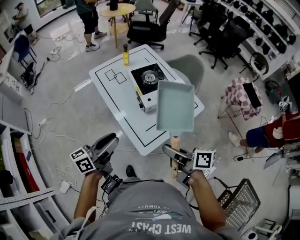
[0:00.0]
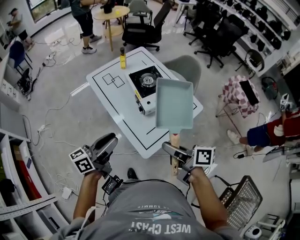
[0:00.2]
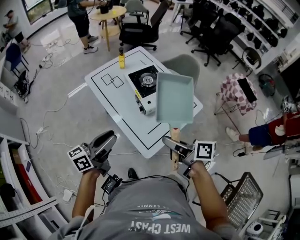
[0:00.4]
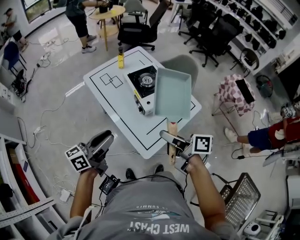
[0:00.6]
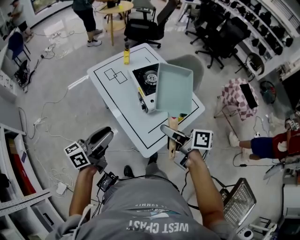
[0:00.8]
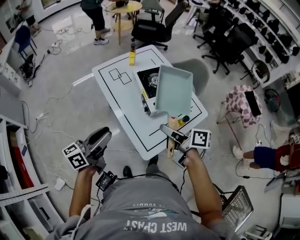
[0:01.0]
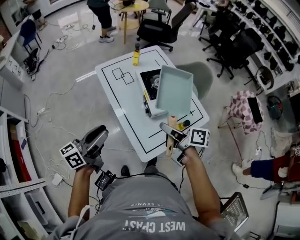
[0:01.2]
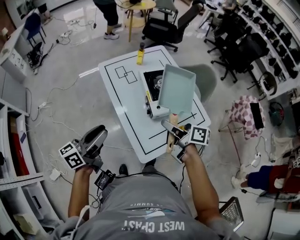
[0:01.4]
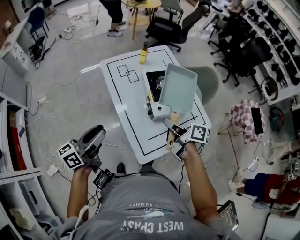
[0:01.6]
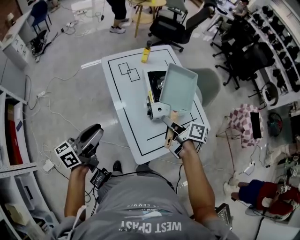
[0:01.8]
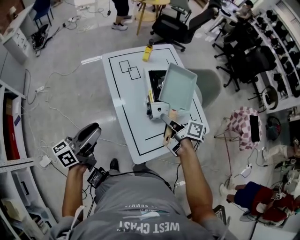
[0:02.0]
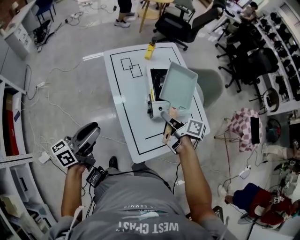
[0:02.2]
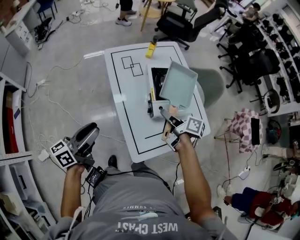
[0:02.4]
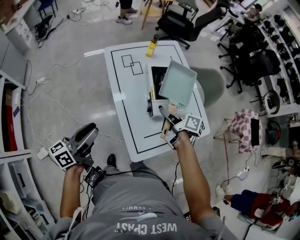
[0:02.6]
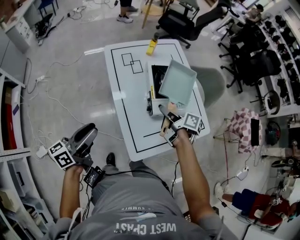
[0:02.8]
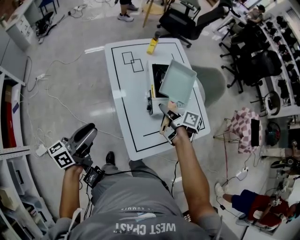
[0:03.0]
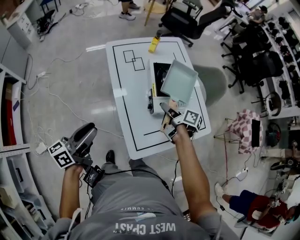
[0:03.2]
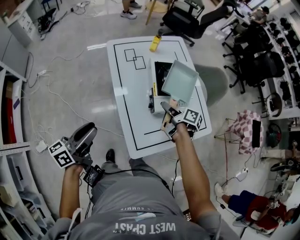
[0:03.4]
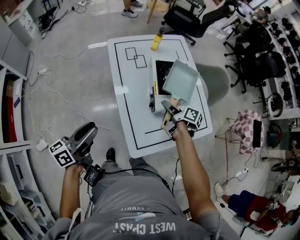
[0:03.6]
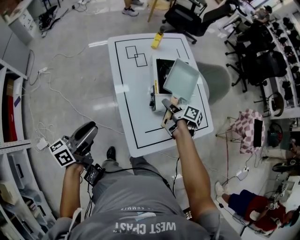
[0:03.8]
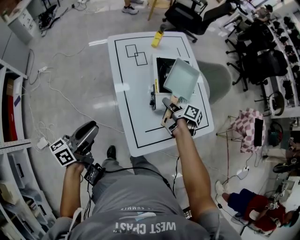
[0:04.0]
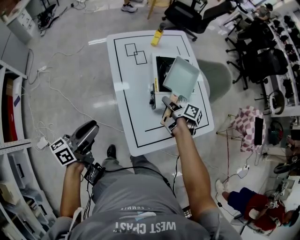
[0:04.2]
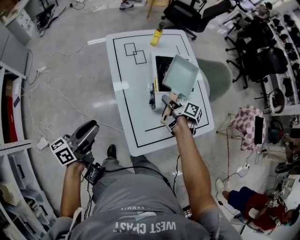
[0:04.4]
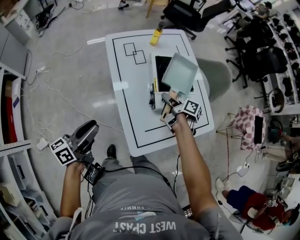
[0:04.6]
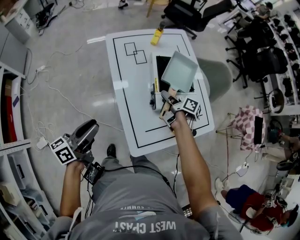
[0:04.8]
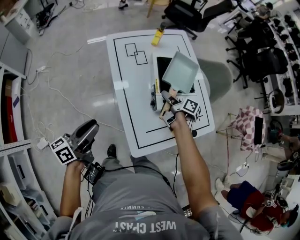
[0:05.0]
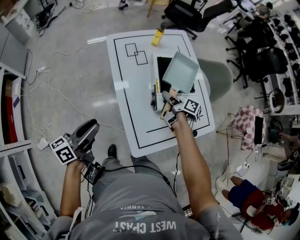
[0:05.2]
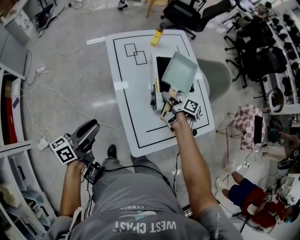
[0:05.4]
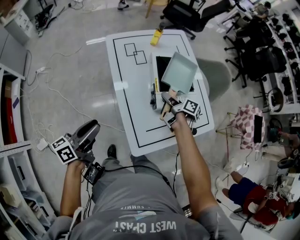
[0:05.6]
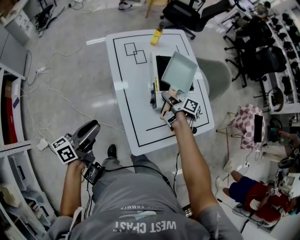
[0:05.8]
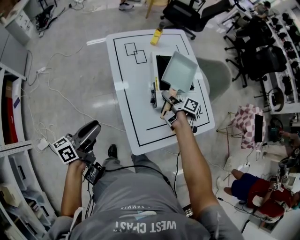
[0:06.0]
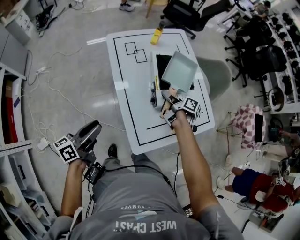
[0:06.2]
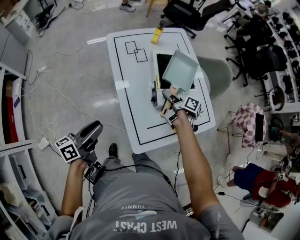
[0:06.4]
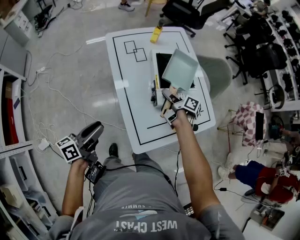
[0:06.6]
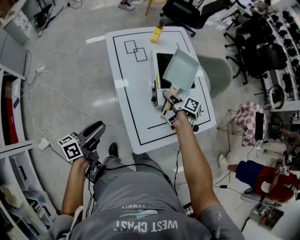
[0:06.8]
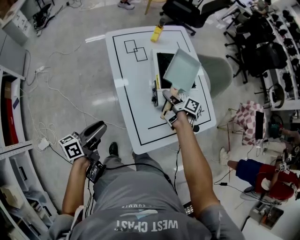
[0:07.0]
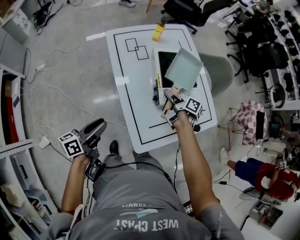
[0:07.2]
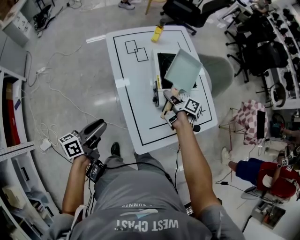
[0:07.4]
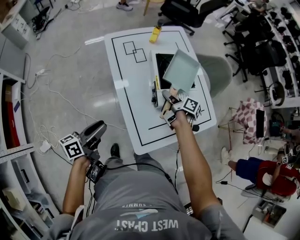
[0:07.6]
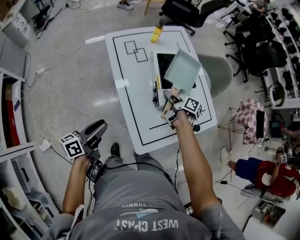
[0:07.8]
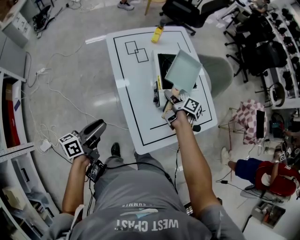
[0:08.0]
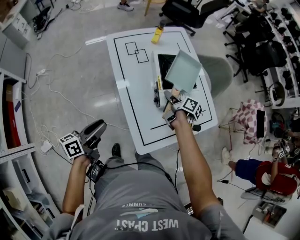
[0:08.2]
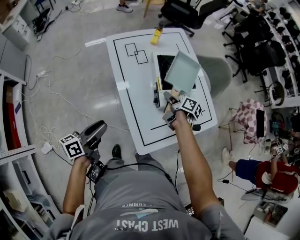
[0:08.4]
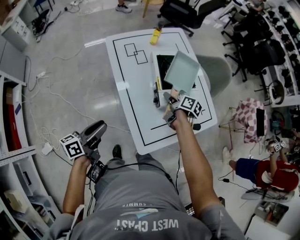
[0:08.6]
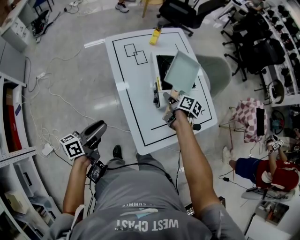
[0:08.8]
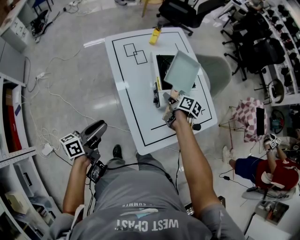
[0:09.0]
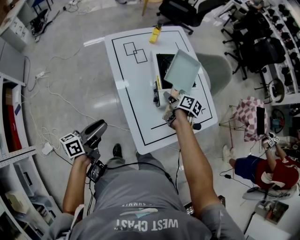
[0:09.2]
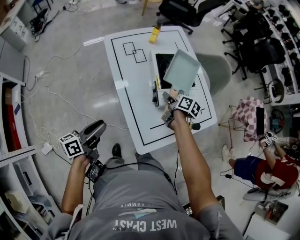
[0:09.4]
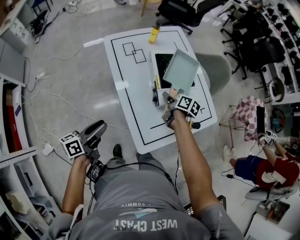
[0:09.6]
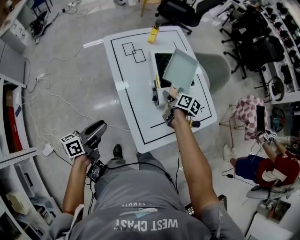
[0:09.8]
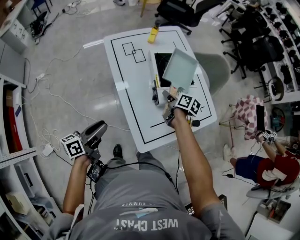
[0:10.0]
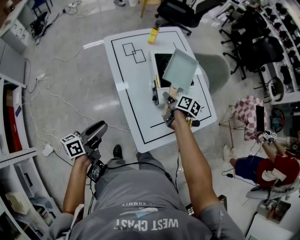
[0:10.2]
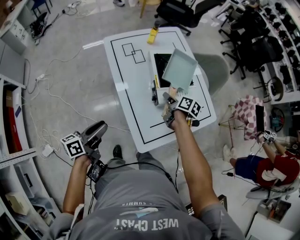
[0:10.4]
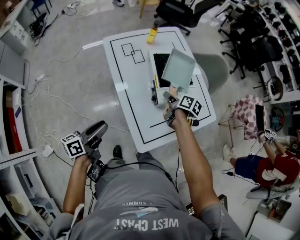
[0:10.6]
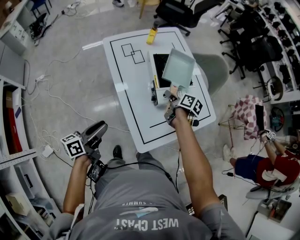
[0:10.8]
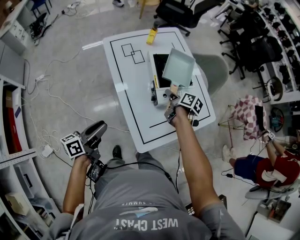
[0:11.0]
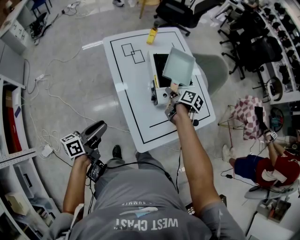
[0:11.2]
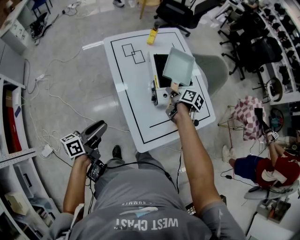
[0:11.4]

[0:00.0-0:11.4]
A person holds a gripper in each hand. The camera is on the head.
0:00.0 to 0:01.4: The left gripper goes approximately 10 cm to the left and forward, while the right gripper is displaced forward by approximately 20 cm.
0:01.4 to 0:02.8: The right gripper moves forward and downward, approximately 15 cm; the left gripper goes roughly 5 cm downward.
0:02.8 to 0:04.2: The right gripper travels downward by some 5 cm.
0:04.2 to 0:10.0: The grippers stay close to where they were, moving slightly.
0:10.0 to 0:11.4: There are only small adjustments of the grippers.

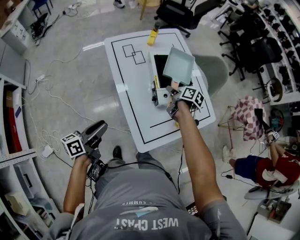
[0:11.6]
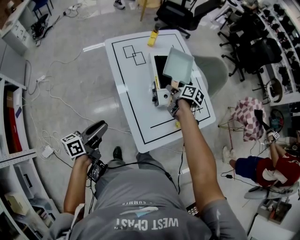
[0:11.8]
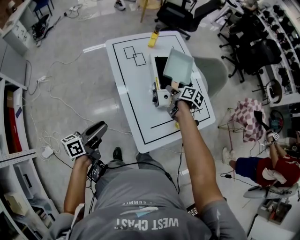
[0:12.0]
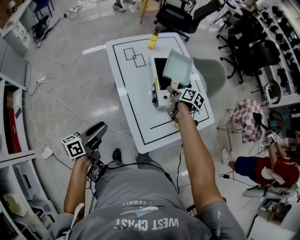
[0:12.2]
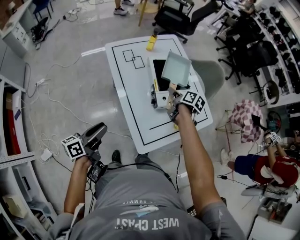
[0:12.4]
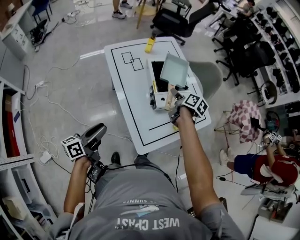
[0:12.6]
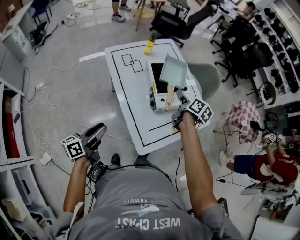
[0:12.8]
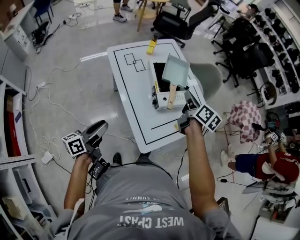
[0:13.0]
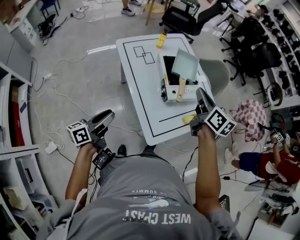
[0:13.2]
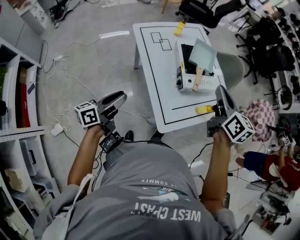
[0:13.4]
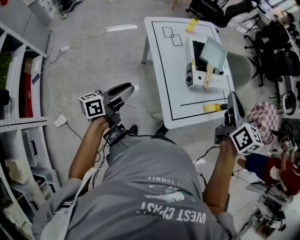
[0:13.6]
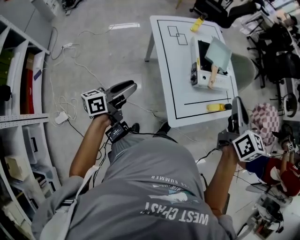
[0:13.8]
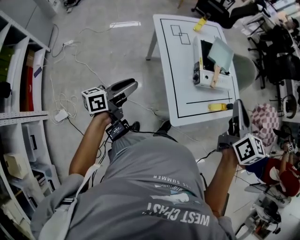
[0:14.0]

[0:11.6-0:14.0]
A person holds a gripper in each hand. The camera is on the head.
0:11.6 to 0:12.8: The right gripper is displaced upward by about 10 cm, and swivels about 20 degrees.
0:12.8 to 0:14.0: The left gripper heads to the left, covering some 5 cm. Meanwhile the right gripper travels backward and upward by approximately 25 cm, changes its angle by roughly 40 degrees, and closes up.

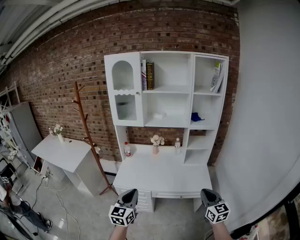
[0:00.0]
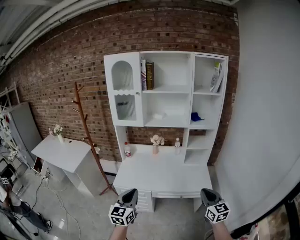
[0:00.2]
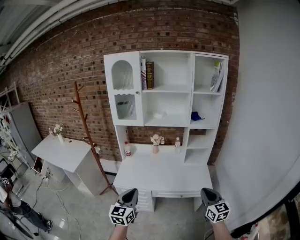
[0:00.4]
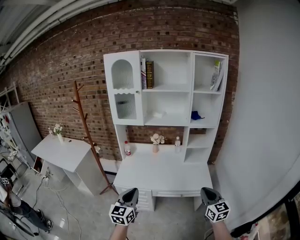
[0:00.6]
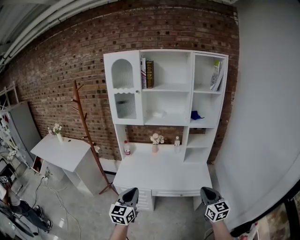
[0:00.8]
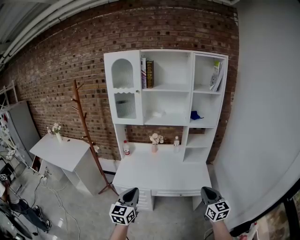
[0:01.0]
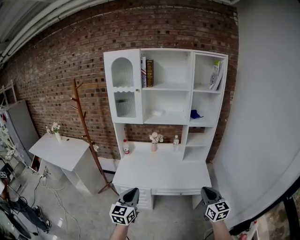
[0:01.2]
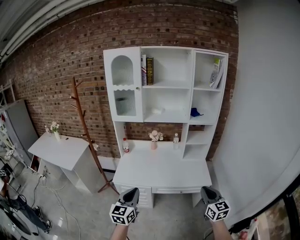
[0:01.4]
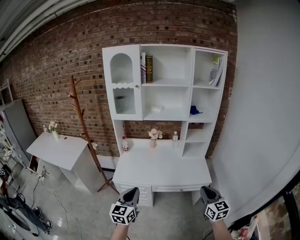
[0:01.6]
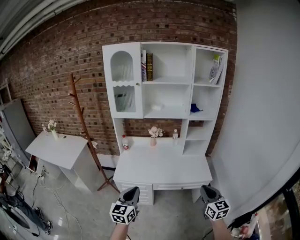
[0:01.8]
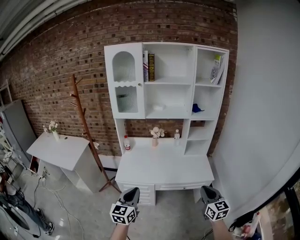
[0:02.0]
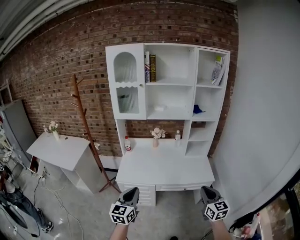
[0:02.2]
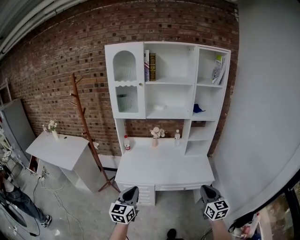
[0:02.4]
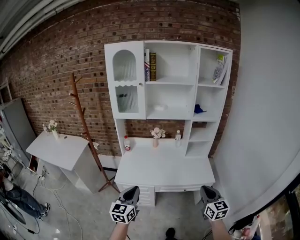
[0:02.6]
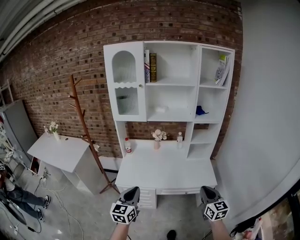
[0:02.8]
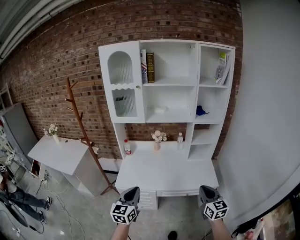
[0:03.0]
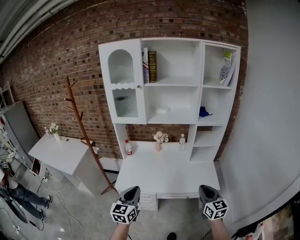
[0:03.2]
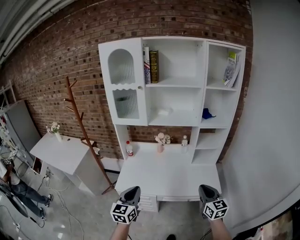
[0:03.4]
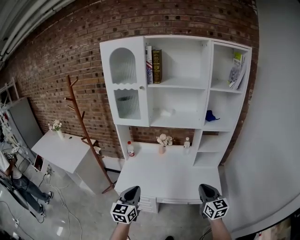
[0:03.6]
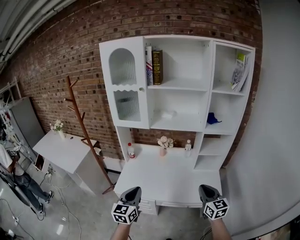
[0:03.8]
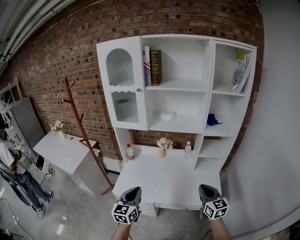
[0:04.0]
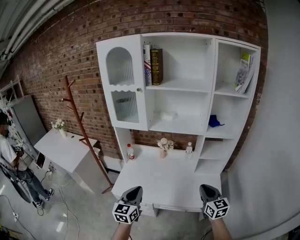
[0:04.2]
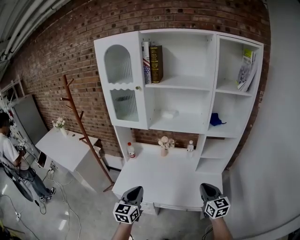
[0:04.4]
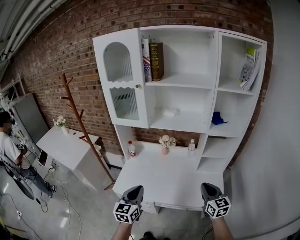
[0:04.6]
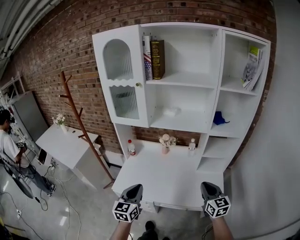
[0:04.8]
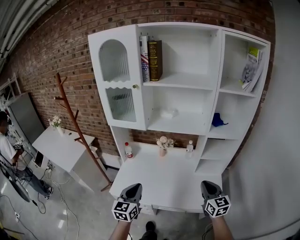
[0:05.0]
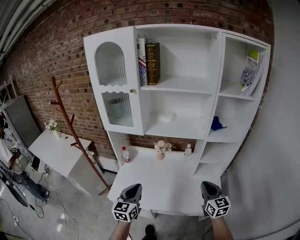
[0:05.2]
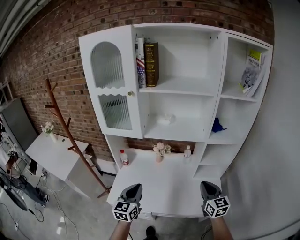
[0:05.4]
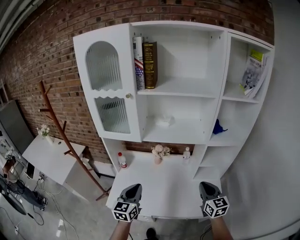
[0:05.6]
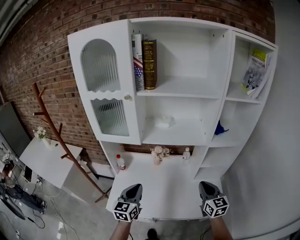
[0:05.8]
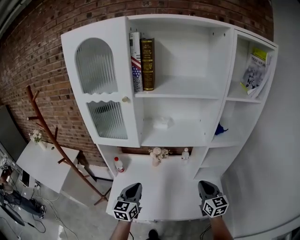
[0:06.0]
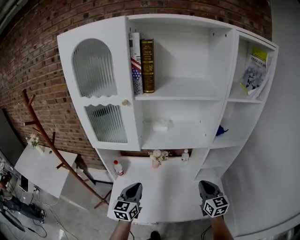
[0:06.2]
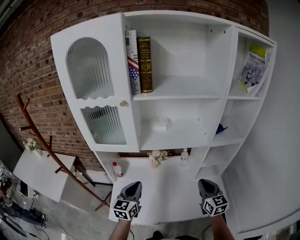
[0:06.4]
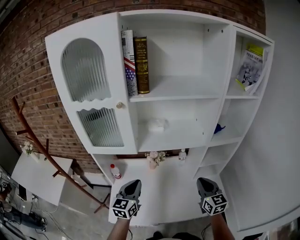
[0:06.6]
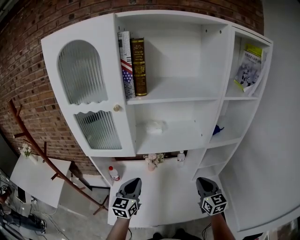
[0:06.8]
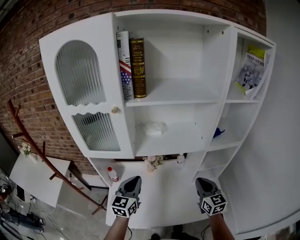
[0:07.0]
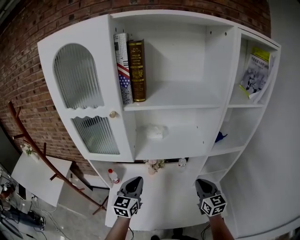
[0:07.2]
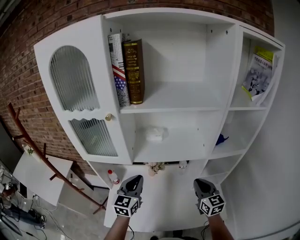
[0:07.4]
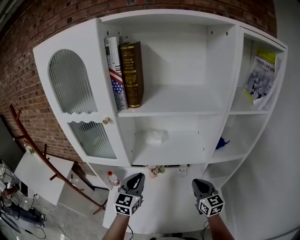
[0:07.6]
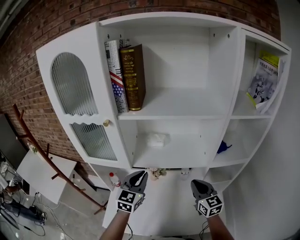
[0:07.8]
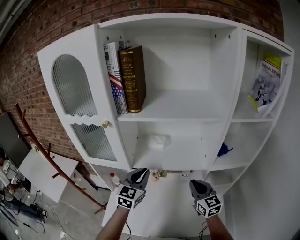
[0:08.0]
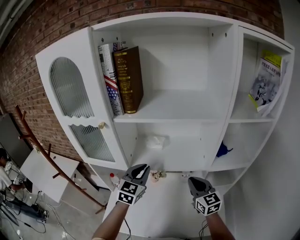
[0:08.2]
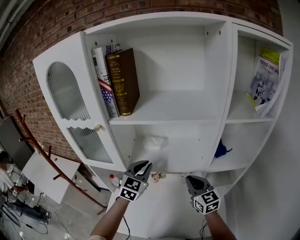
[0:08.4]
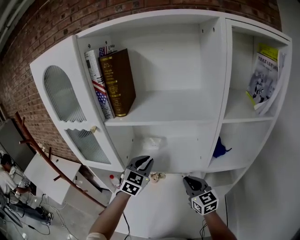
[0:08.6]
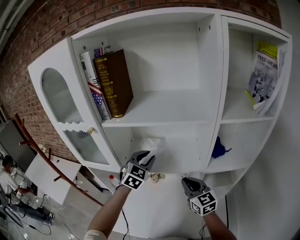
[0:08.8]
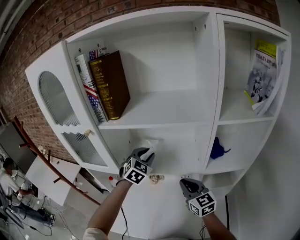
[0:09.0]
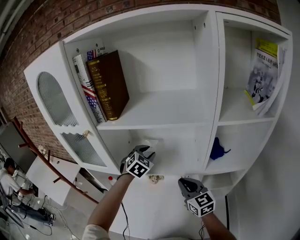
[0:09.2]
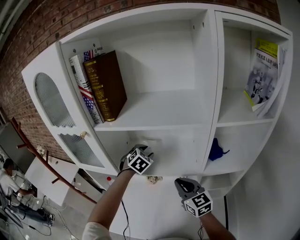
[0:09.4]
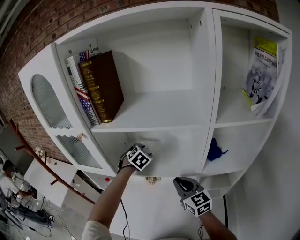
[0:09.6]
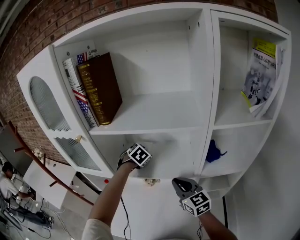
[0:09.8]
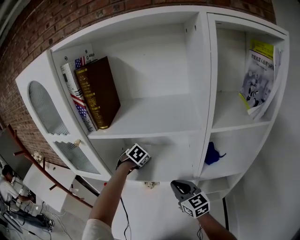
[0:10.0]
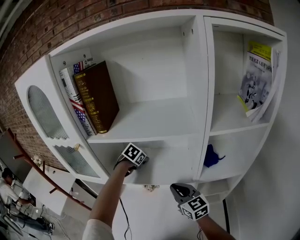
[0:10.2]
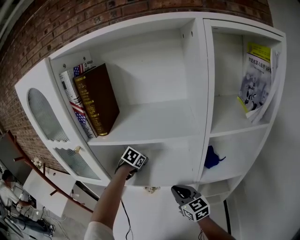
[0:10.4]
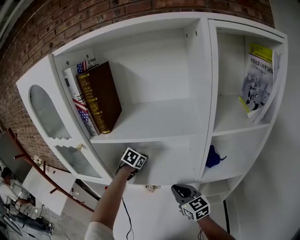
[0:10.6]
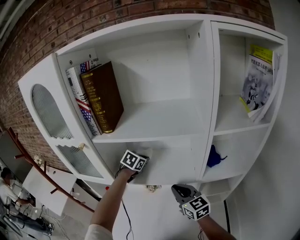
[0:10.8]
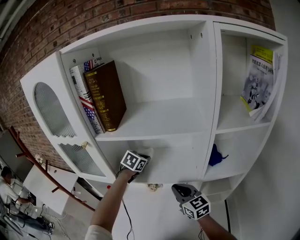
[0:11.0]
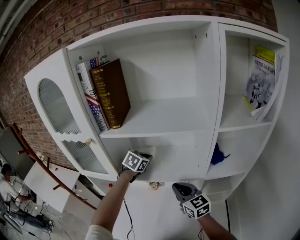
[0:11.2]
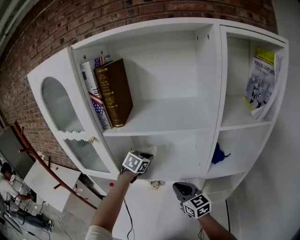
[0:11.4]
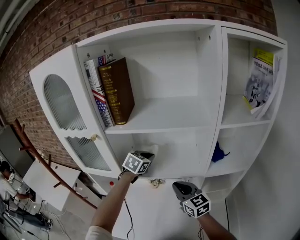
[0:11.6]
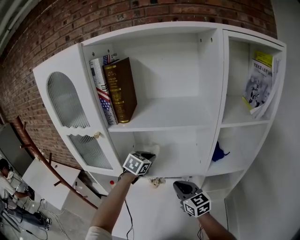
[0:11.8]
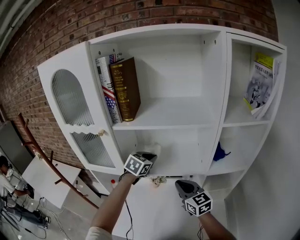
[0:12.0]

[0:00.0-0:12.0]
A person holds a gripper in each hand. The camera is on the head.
0:00.0 to 0:01.6: The grippers make only small movements.
0:01.6 to 0:03.0: Both grippers move forward, some 10 cm.
0:03.0 to 0:04.4: The right gripper heads forward, covering approximately 20 cm. The left gripper travels forward and to the right by some 15 cm.
0:04.4 to 0:06.0: The two grippers go about 20 cm forward.
0:06.0 to 0:07.6: The right gripper is displaced forward by about 10 cm, while the left gripper travels forward and upward by roughly 15 cm.
0:07.6 to 0:09.0: The right gripper heads forward, covering approximately 5 cm, while the left gripper travels forward and to the right by about 20 cm, and changes its angle by approximately 30 degrees.
0:09.0 to 0:10.4: The left gripper shifts roughly 10 cm forward and downward, turns by some 30 degrees, and opens and closes again.
0:10.4 to 0:12.0: The left gripper travels backward and upward by some 10 cm, while the right gripper shifts by roughly 5 cm.
